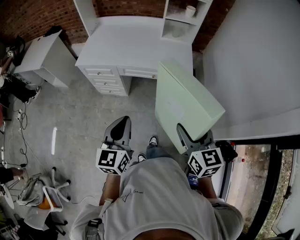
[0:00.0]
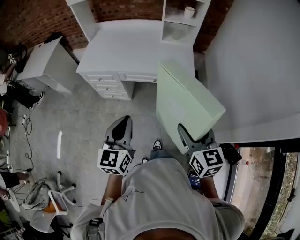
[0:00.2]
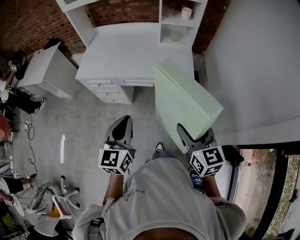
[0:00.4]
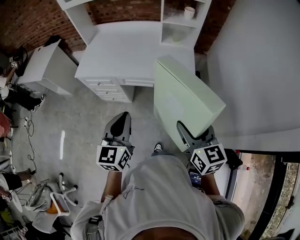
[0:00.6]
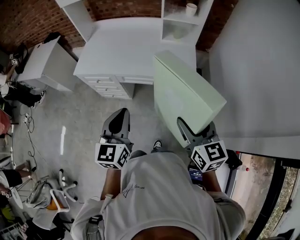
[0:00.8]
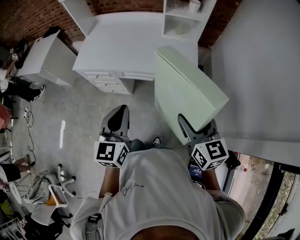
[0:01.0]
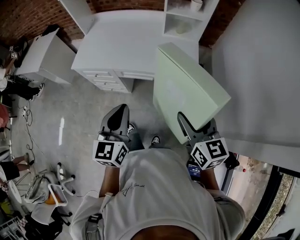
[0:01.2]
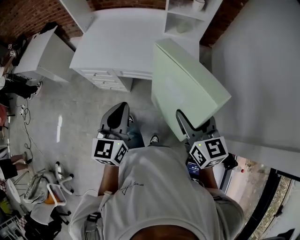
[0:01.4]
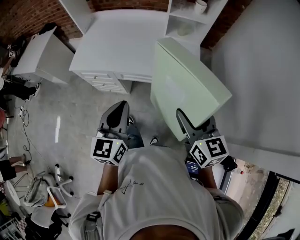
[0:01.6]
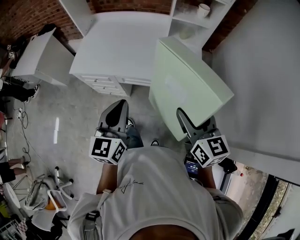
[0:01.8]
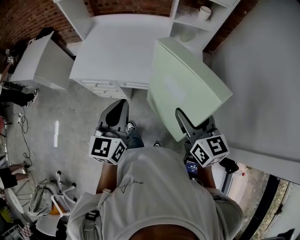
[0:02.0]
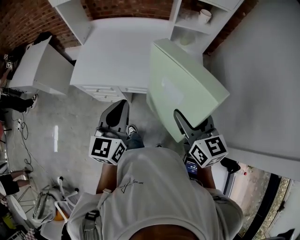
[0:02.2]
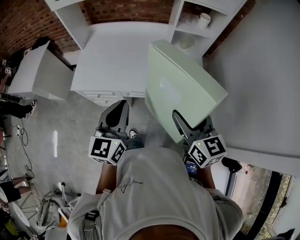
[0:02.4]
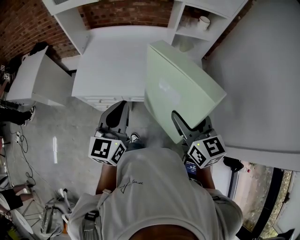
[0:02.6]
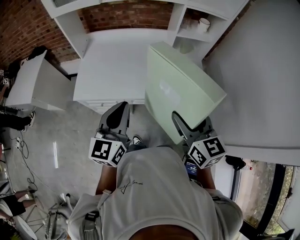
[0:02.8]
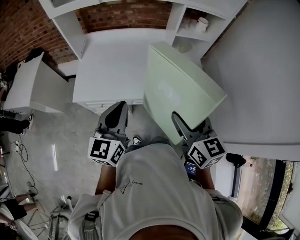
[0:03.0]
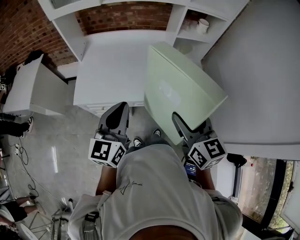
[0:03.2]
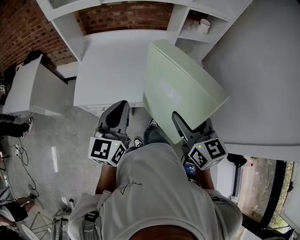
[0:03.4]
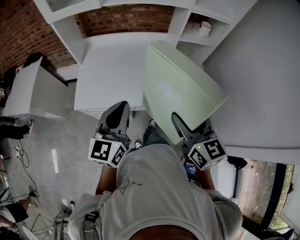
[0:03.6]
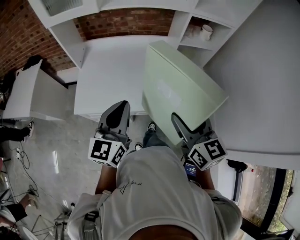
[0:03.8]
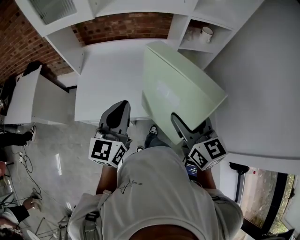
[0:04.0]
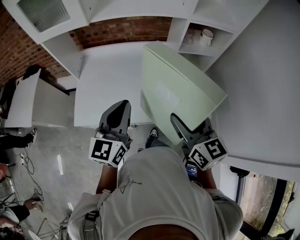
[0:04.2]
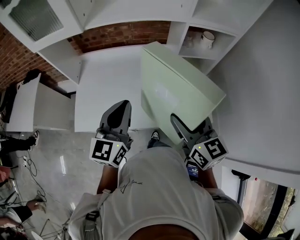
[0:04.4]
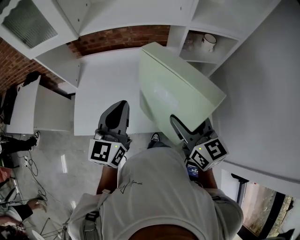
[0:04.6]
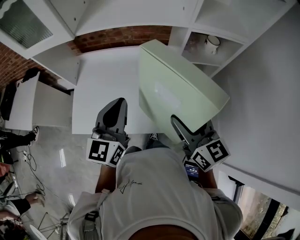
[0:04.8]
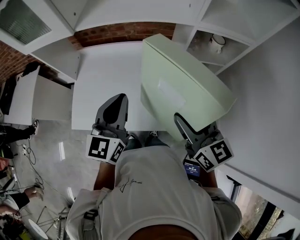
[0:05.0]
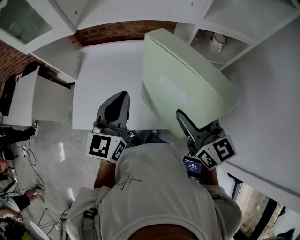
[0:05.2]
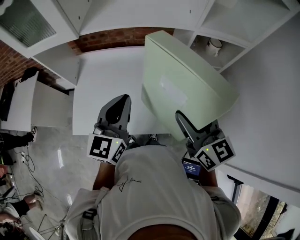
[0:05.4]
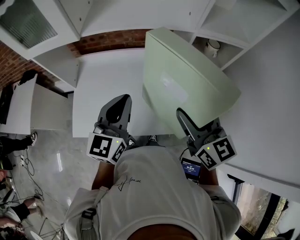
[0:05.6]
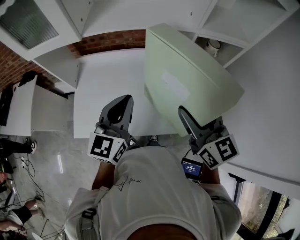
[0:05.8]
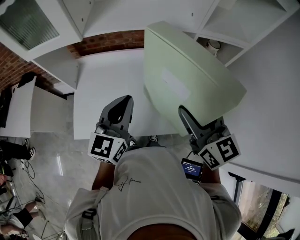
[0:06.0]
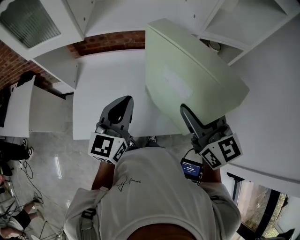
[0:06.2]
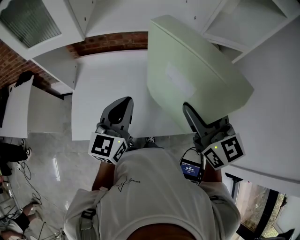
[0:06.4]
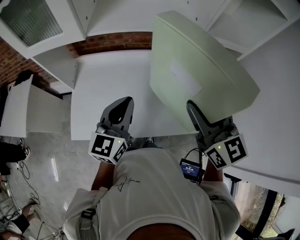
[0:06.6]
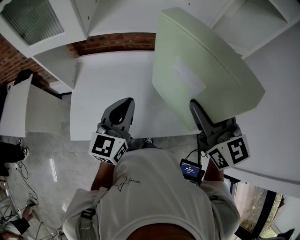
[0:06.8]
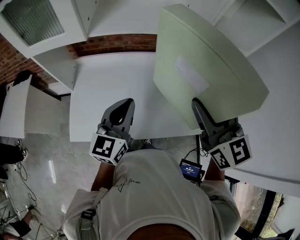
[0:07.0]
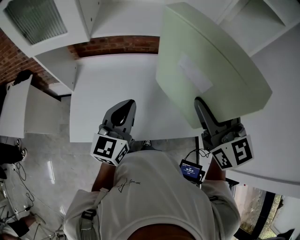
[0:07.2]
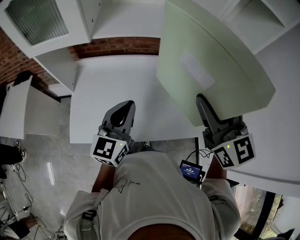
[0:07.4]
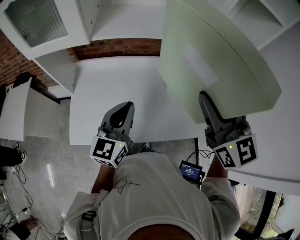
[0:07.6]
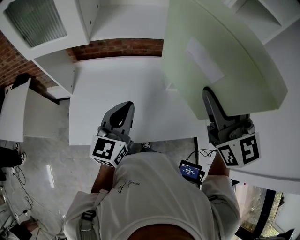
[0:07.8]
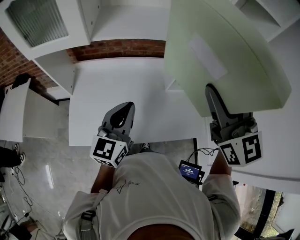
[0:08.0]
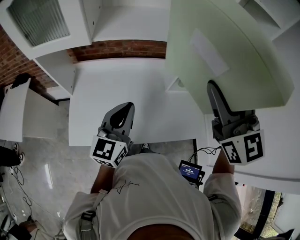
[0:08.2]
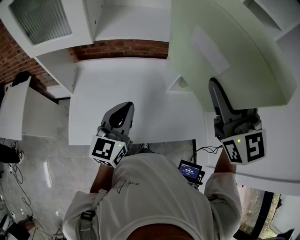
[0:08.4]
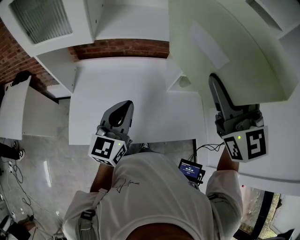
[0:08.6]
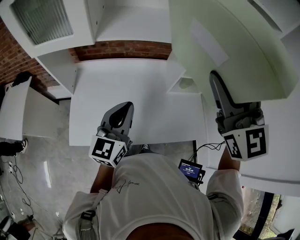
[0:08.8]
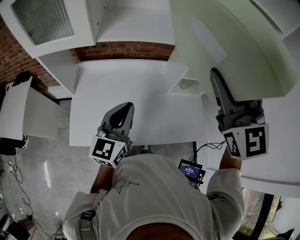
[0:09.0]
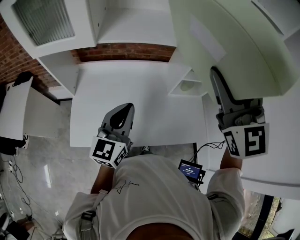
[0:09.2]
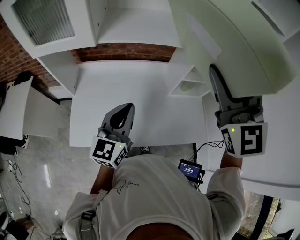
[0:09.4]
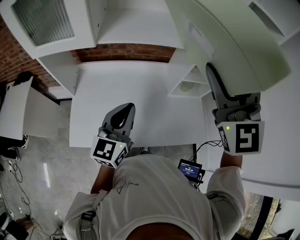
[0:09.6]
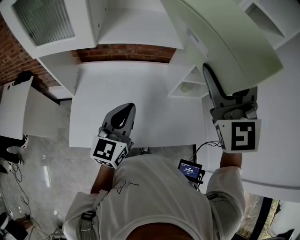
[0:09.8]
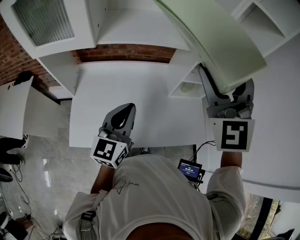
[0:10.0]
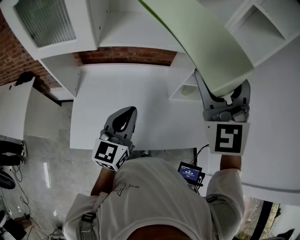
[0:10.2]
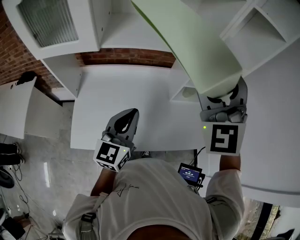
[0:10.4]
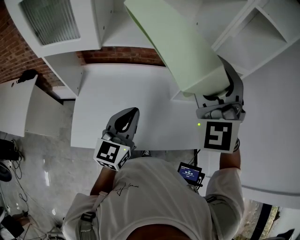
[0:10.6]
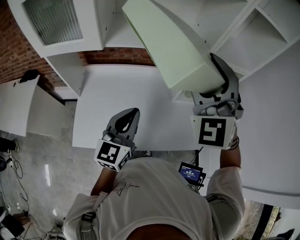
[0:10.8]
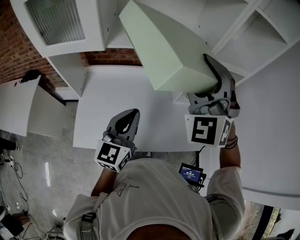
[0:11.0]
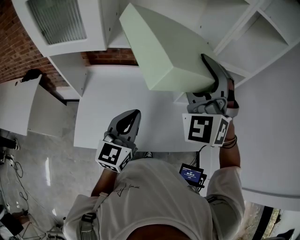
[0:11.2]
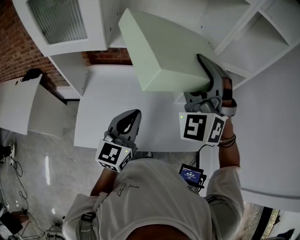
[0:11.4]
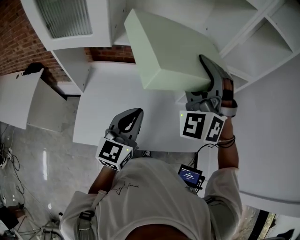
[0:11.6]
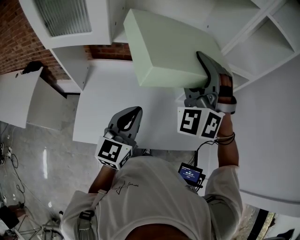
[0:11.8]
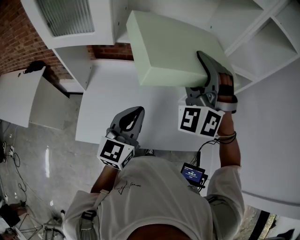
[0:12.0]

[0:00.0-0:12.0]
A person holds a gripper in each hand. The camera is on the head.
0:00.0 to 0:01.6: Both grippers move forward, roughly 20 cm.
0:01.6 to 0:03.0: Both grippers travel together to the left and forward, about 20 cm.
0:03.0 to 0:04.4: Both grippers travel together forward, about 20 cm.
0:04.4 to 0:06.0: The right gripper heads forward and upward, covering approximately 10 cm; the left gripper shifts about 10 cm forward.
0:06.0 to 0:07.6: The right gripper moves upward, roughly 10 cm.
0:07.6 to 0:09.0: The right gripper heads upward, covering roughly 5 cm.
0:09.0 to 0:10.4: The right gripper moves approximately 5 cm, and changes its angle by about 20 degrees.
0:10.4 to 0:12.0: The right gripper travels downward and to the left by some 10 cm, and turns by some 30 degrees.

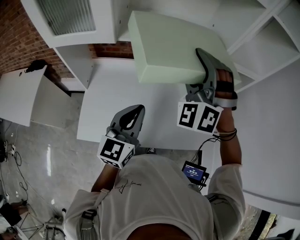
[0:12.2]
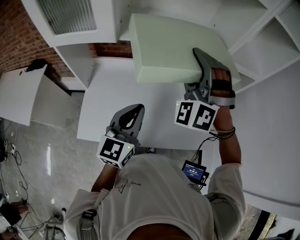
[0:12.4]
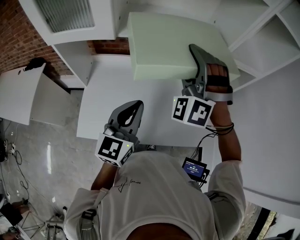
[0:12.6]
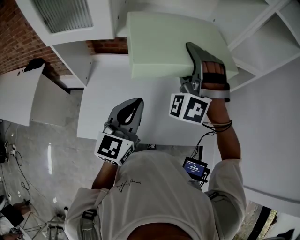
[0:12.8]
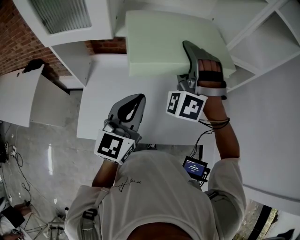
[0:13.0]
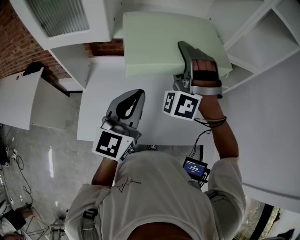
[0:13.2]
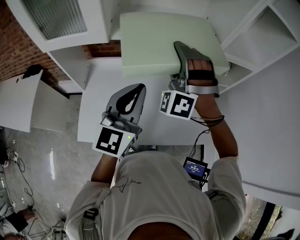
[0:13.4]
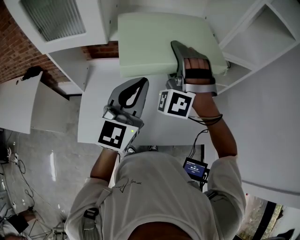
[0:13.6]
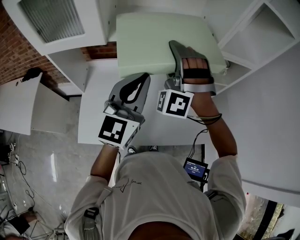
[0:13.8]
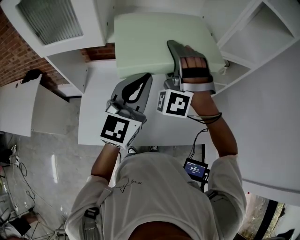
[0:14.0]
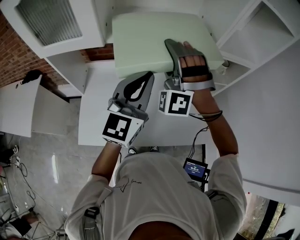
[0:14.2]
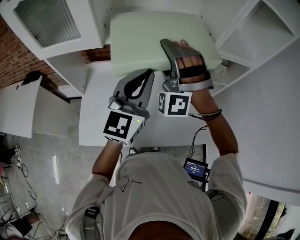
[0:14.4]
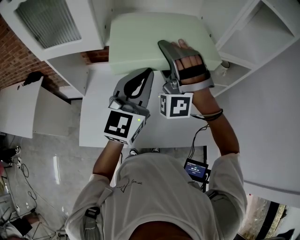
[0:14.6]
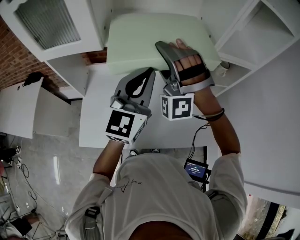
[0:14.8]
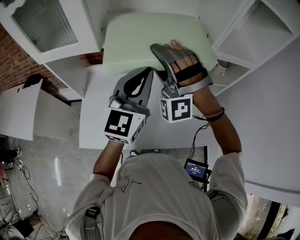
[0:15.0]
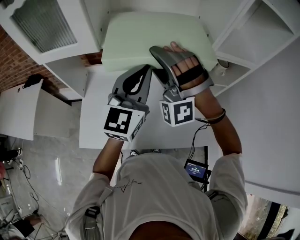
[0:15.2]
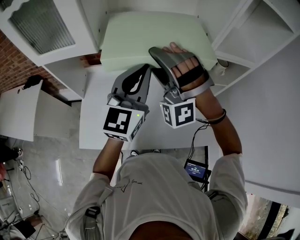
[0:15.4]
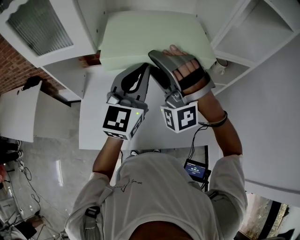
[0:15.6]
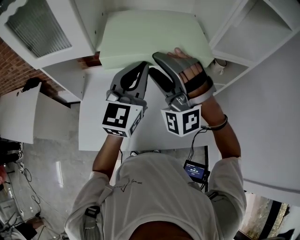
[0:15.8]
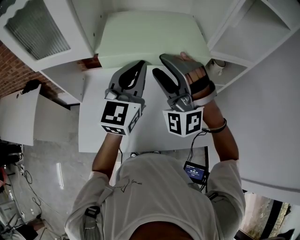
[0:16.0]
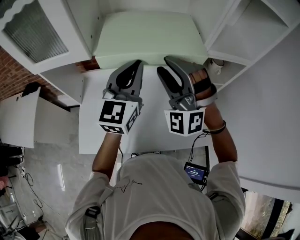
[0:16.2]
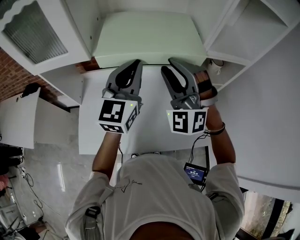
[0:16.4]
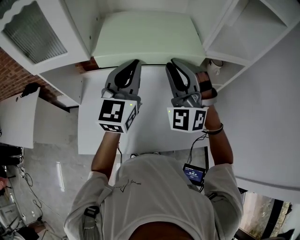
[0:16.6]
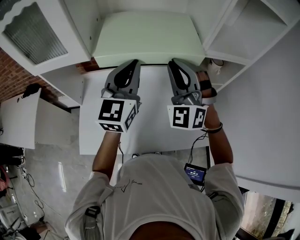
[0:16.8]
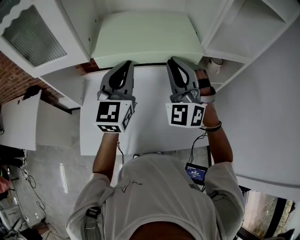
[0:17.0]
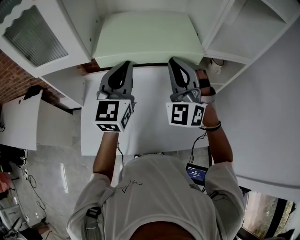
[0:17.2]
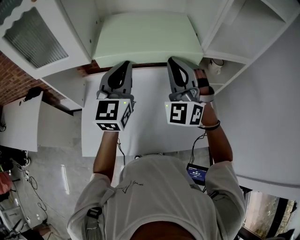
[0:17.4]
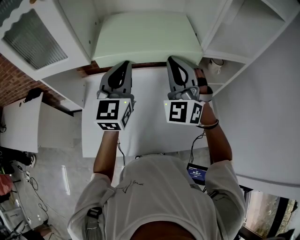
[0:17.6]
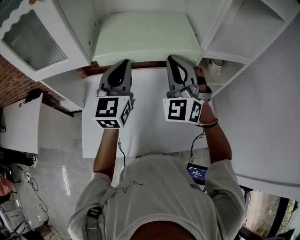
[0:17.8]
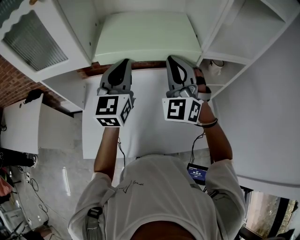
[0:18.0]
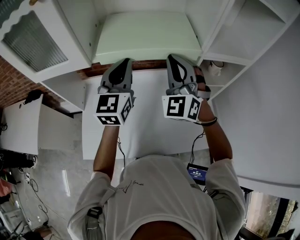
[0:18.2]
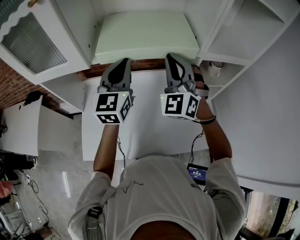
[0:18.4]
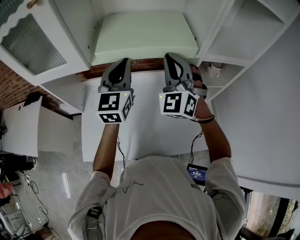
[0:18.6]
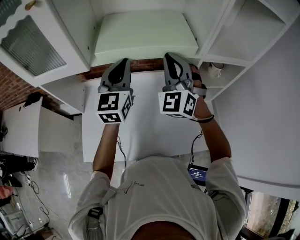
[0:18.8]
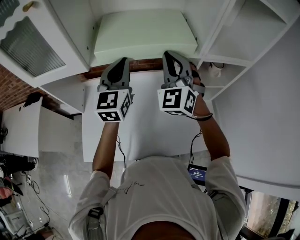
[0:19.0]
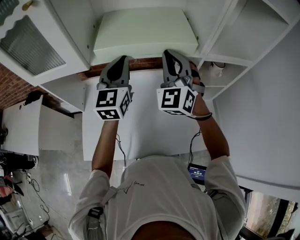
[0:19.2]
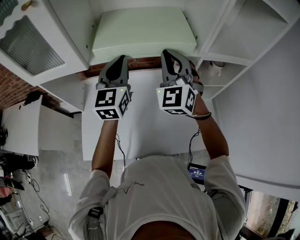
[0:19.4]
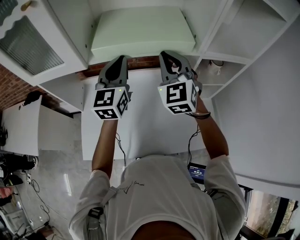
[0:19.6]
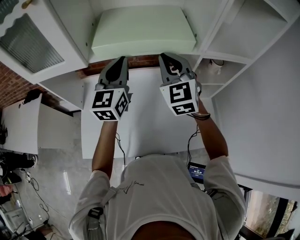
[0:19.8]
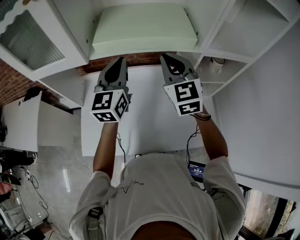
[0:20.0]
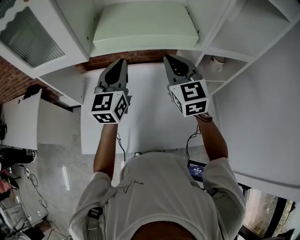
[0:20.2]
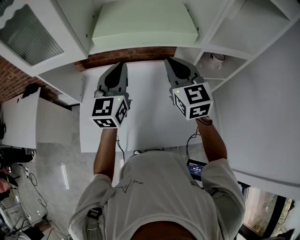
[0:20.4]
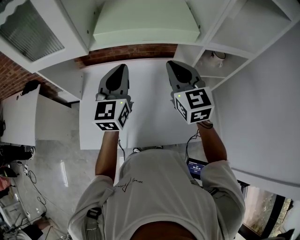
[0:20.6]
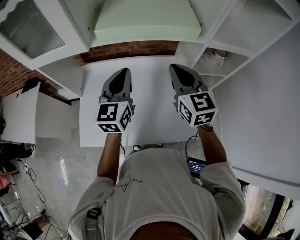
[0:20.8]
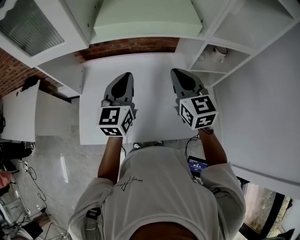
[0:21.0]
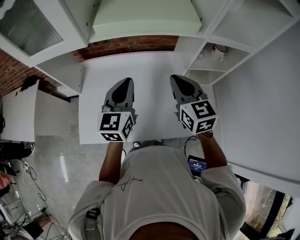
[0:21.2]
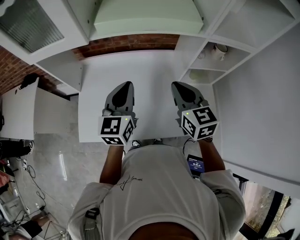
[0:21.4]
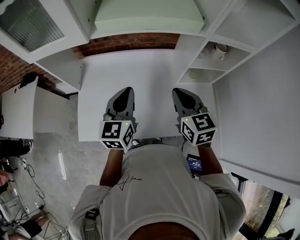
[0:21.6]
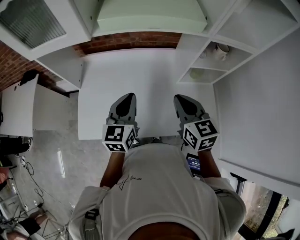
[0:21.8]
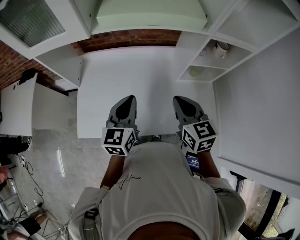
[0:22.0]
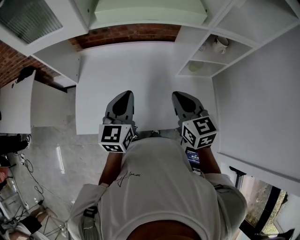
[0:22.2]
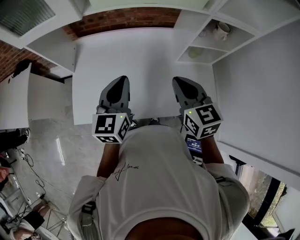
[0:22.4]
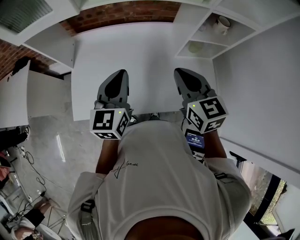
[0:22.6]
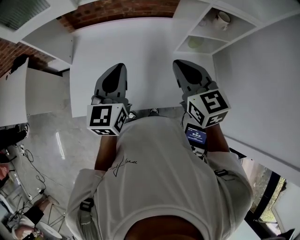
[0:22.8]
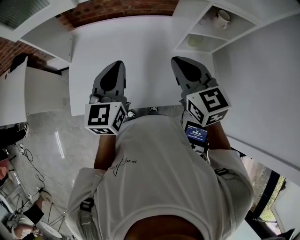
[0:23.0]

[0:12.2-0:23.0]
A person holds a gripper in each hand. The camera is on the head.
0:12.2 to 0:13.8: The right gripper shifts by roughly 5 cm, while the left gripper goes some 10 cm upward and forward.
0:13.8 to 0:15.2: The right gripper turns by about 20 degrees.
0:15.2 to 0:16.8: The right gripper shifts some 10 cm to the right, turns by about 30 degrees, and closes.
0:16.8 to 0:18.4: The left gripper changes place by roughly 5 cm.
0:18.4 to 0:20.0: The right gripper swivels approximately 40 degrees.
0:20.0 to 0:21.4: The two grippers go roughly 15 cm backward and downward. The right gripper changes its angle by approximately 30 degrees.
0:21.4 to 0:23.0: The grippers both shift backward by roughly 5 cm.

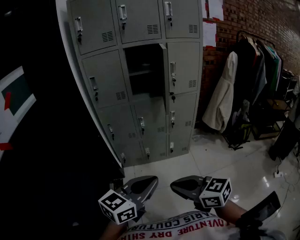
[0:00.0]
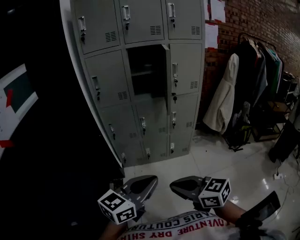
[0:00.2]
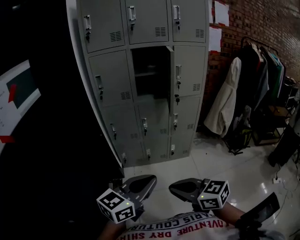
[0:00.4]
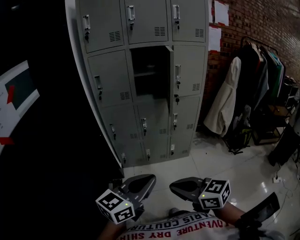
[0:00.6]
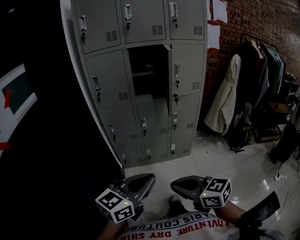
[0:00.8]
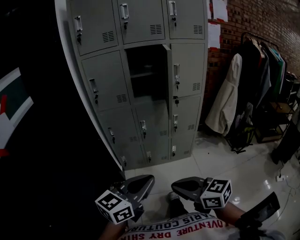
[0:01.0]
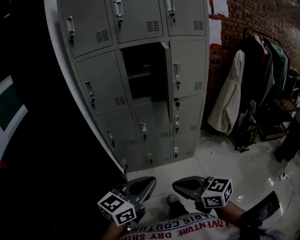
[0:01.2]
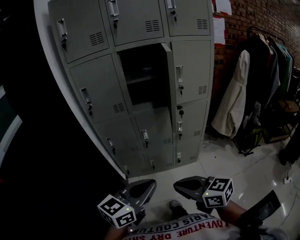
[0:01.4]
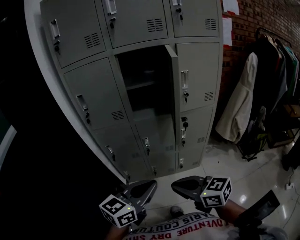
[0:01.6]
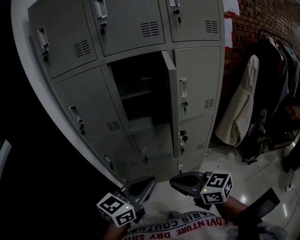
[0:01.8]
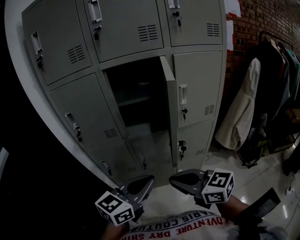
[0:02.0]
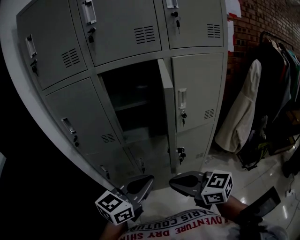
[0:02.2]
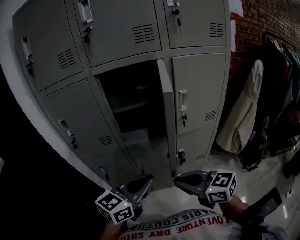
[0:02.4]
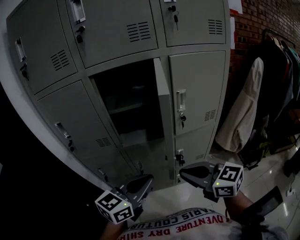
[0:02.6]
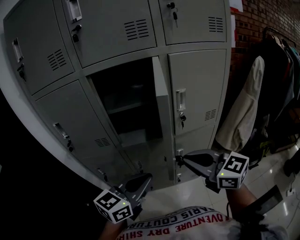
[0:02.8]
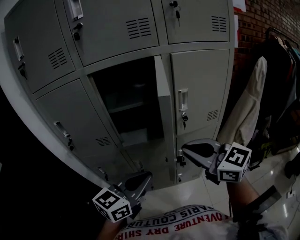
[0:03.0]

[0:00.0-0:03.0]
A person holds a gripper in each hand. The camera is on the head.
0:00.0 to 0:01.6: The grippers both shift forward by about 25 cm.
0:01.6 to 0:03.0: The right gripper goes approximately 30 cm forward, upward and to the right, and turns by some 20 degrees. Meanwhile the left gripper heads forward, covering roughly 20 cm.
